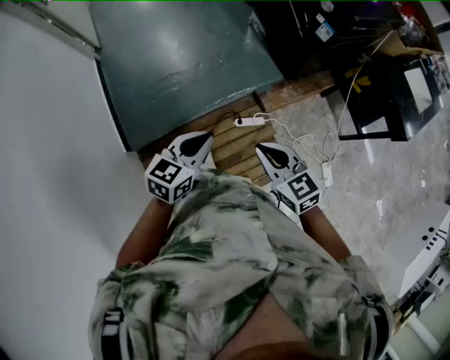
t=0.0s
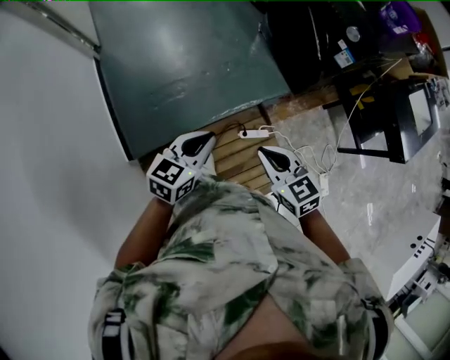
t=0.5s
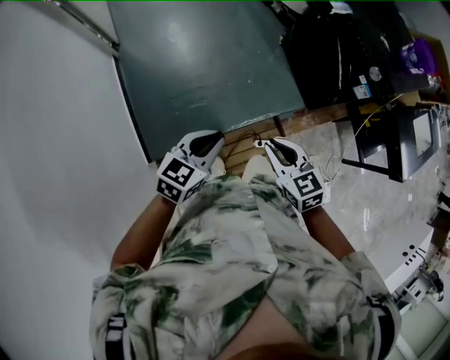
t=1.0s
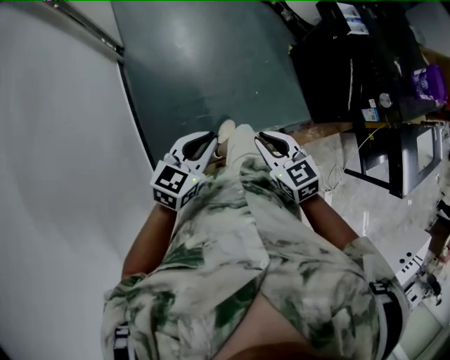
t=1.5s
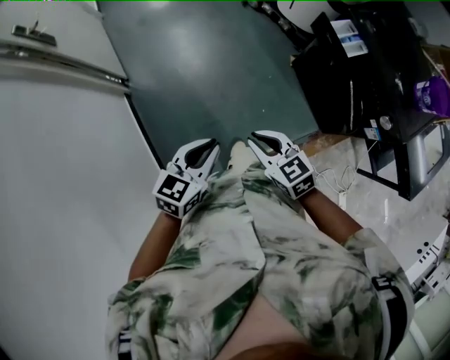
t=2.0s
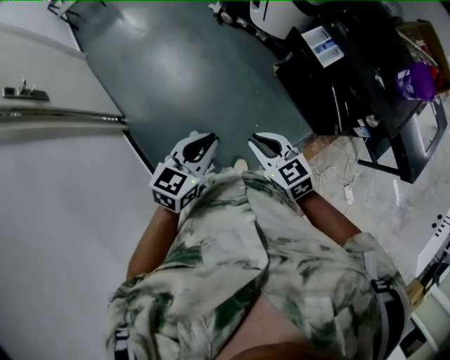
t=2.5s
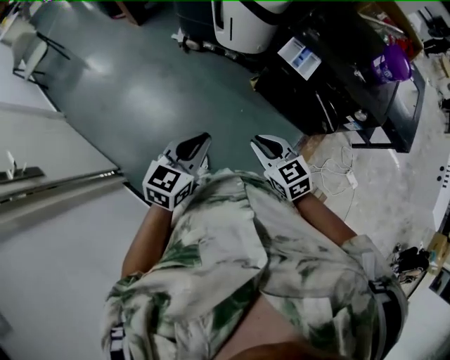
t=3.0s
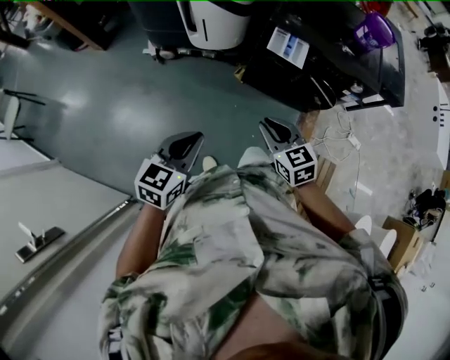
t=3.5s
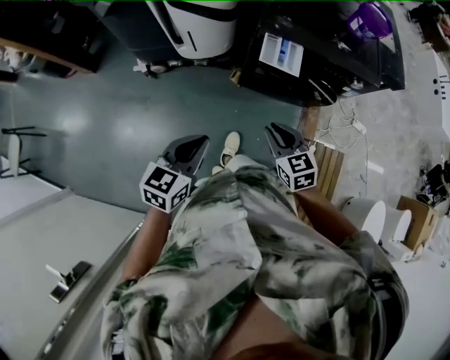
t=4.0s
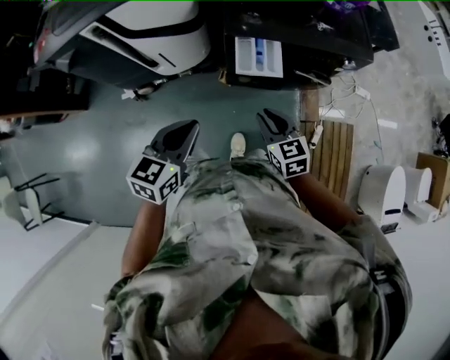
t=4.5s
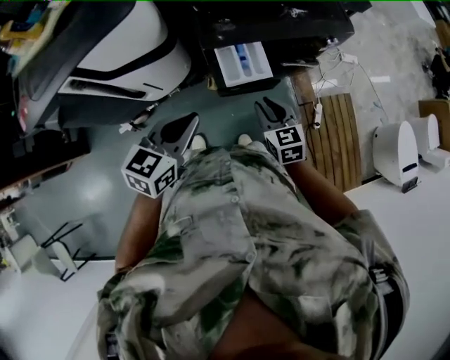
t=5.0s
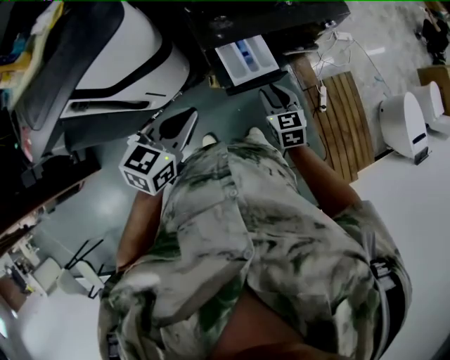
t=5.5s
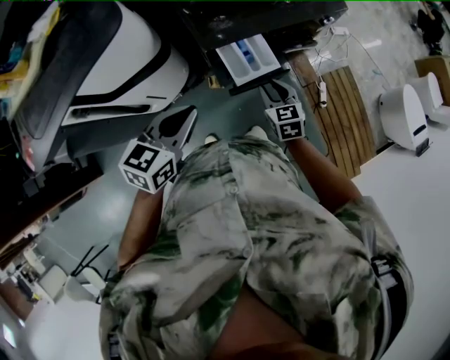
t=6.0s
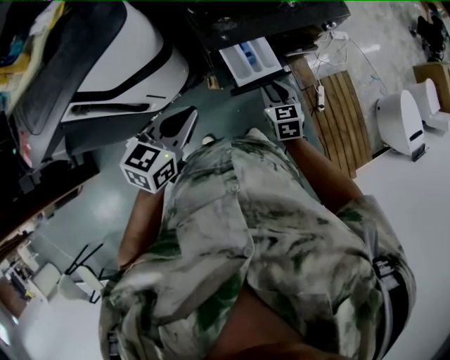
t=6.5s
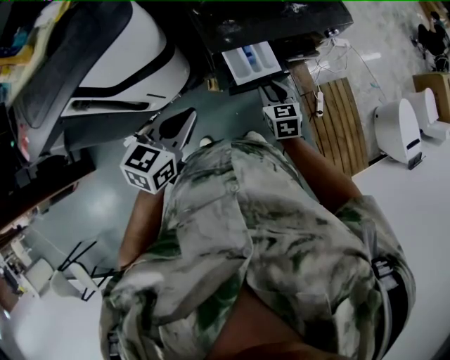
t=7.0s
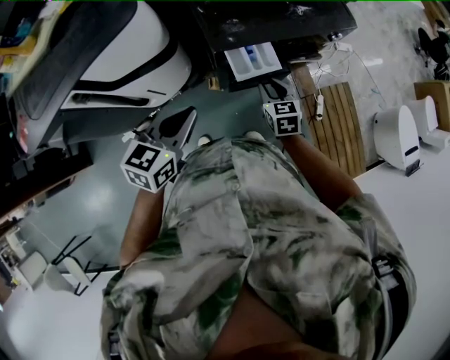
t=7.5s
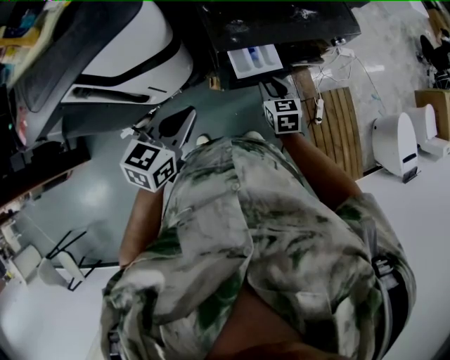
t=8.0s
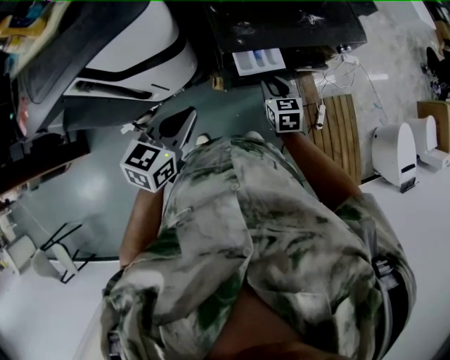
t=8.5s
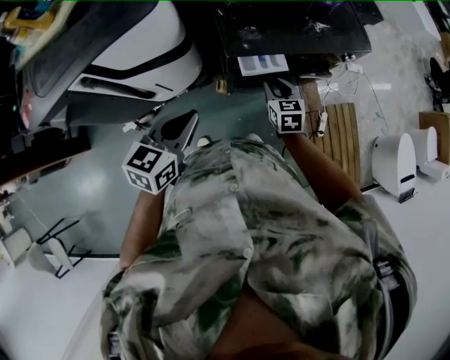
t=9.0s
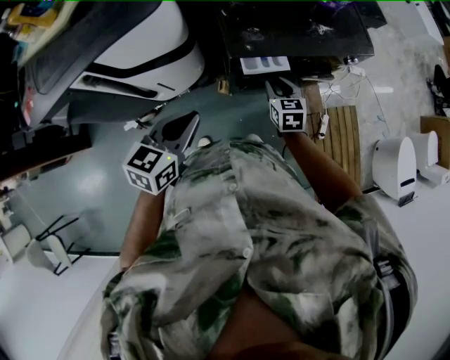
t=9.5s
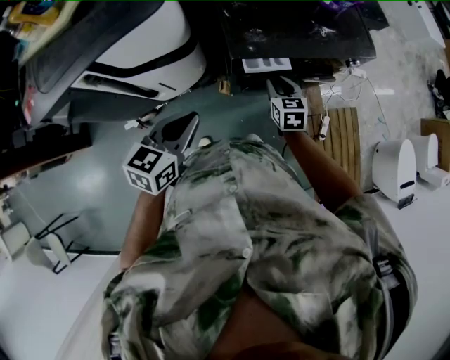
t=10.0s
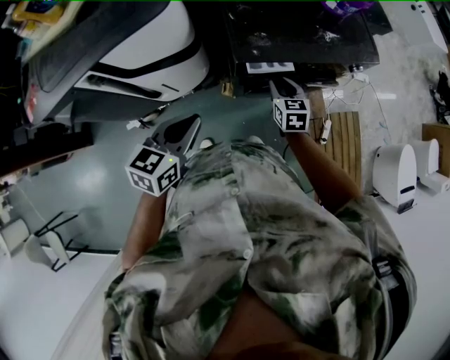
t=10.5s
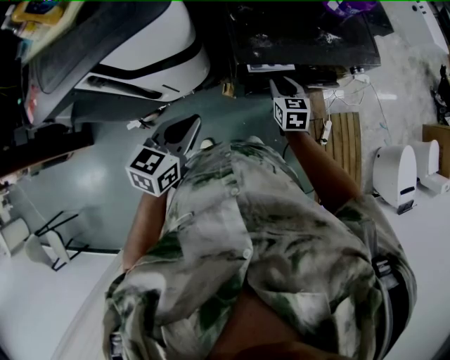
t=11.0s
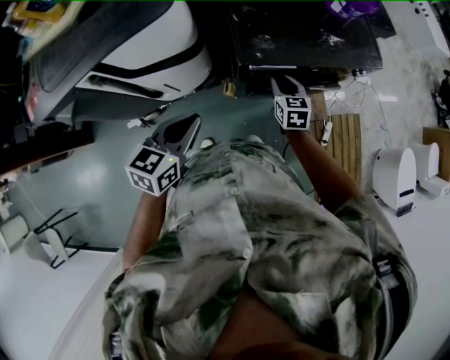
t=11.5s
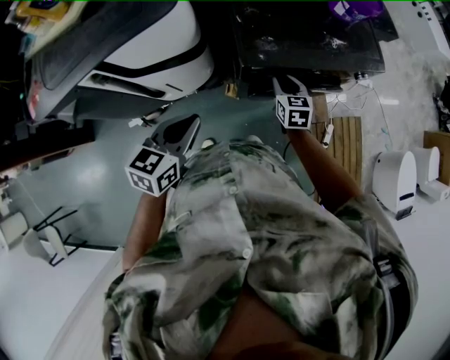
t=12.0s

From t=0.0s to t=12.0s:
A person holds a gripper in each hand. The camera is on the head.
From t=0.0s to t=2.0s: Both grippers are carried forward and to the left, roughly 60 cm.
From t=2.0s to t=4.0s: The left gripper shifts by some 50 cm, and changes its angle by approximately 50 degrees. The right gripper shifts by some 40 cm, and turns by some 70 degrees.
From t=4.0s to t=6.0s: The right gripper changes place by roughly 25 cm, and turns by about 40 degrees; the left gripper ends up about 30 cm from where it was, and swivels about 40 degrees.
From t=6.0s to t=8.0s: The grippers stay close to where they were, moving slightly.
From t=8.0s to t=10.0s: There are only small adjustments of the grippers.
From t=10.0s to t=12.0s: The grippers make only small movements.

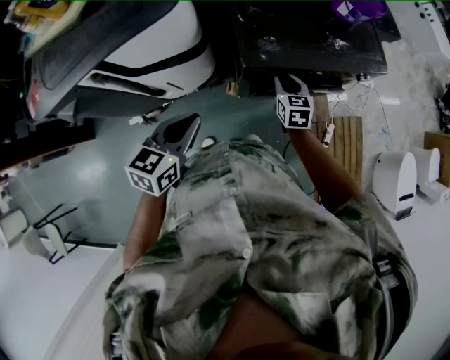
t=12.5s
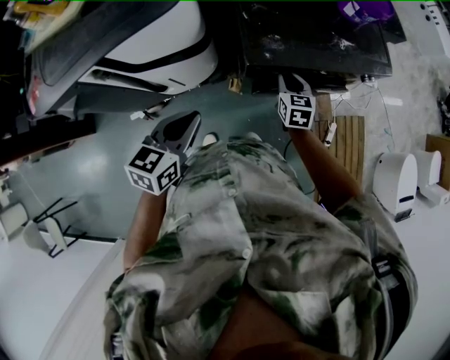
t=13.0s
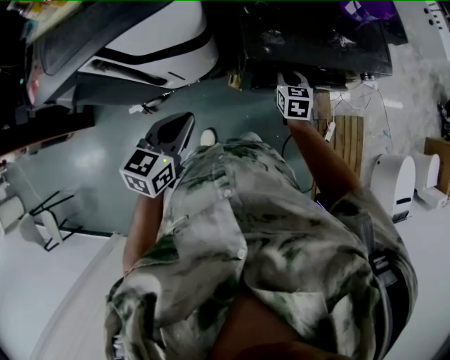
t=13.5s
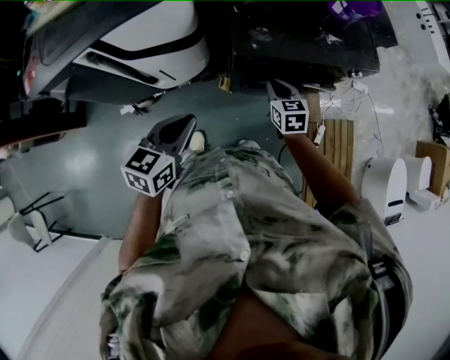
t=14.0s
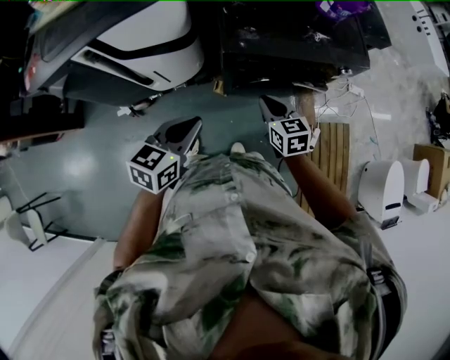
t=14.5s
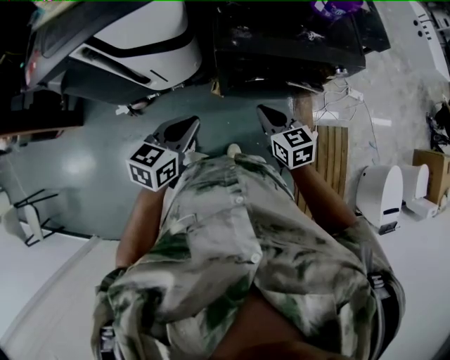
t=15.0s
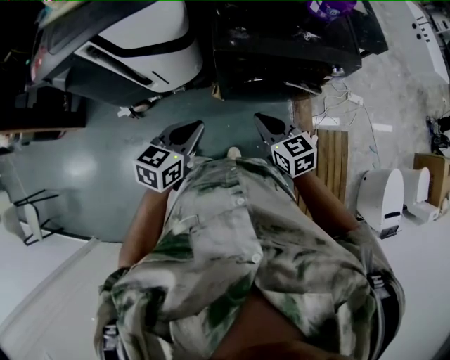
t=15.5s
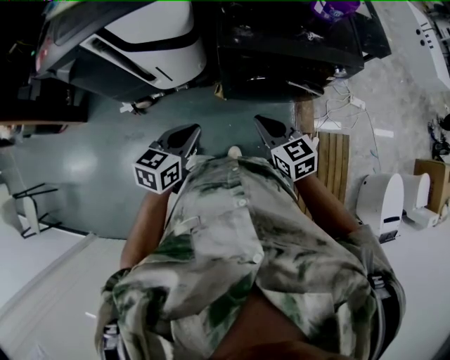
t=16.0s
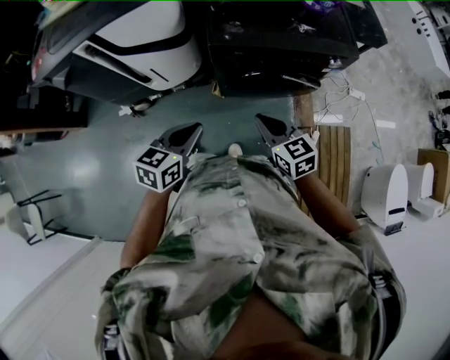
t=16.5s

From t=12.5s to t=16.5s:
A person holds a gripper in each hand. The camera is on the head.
From t=12.5s to t=14.5s: The left gripper moves to the right and backward, about 10 cm. The right gripper shifts about 15 cm backward and upward.
From t=14.5s to t=16.5s: The right gripper shifts approximately 10 cm backward; the left gripper travels backward and to the right by some 10 cm.

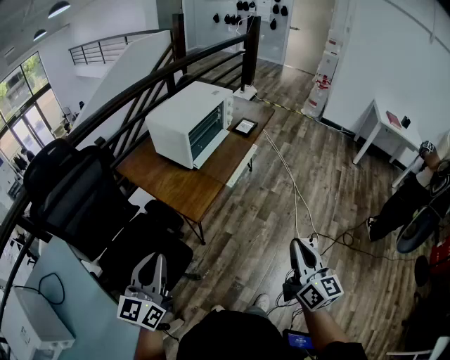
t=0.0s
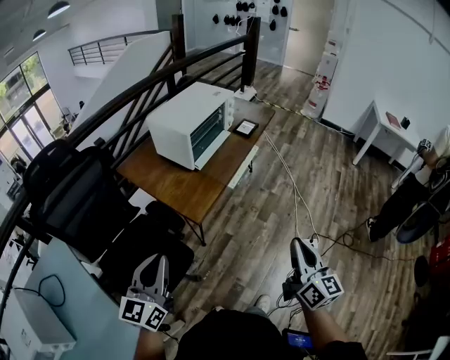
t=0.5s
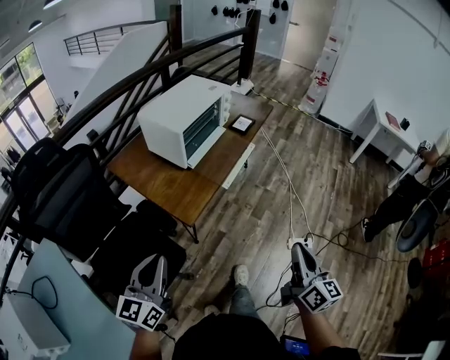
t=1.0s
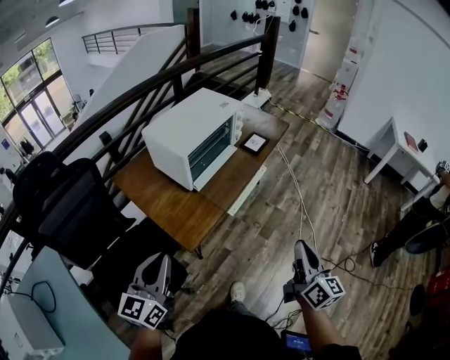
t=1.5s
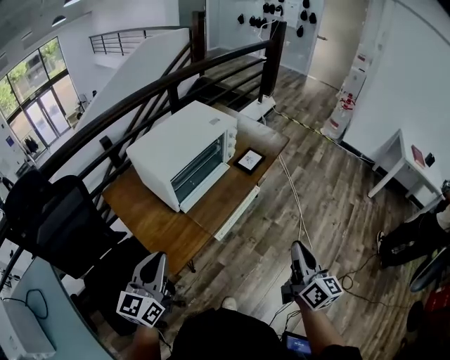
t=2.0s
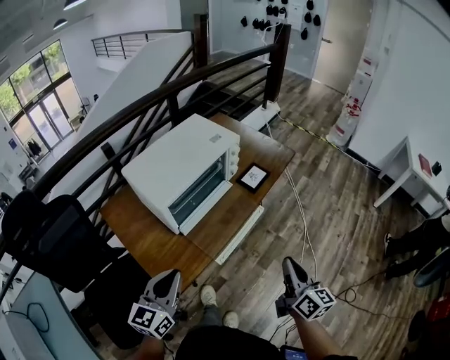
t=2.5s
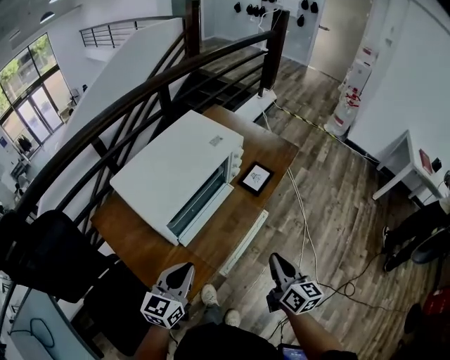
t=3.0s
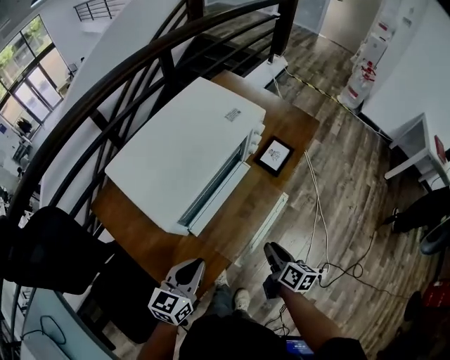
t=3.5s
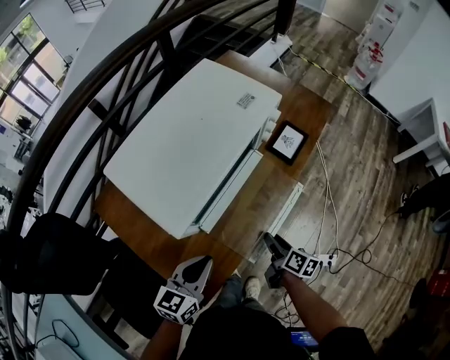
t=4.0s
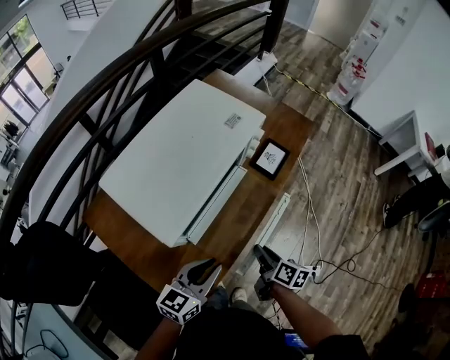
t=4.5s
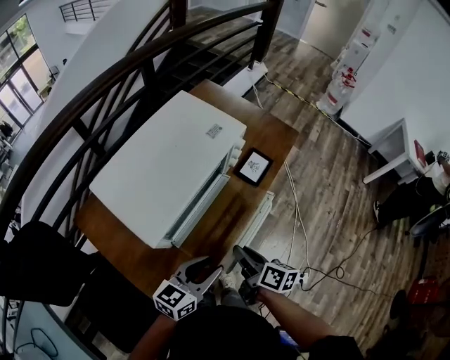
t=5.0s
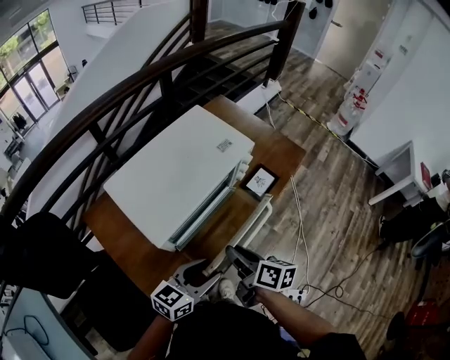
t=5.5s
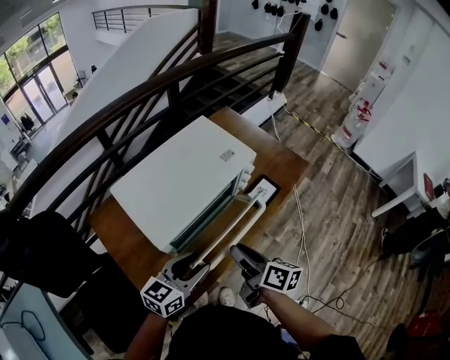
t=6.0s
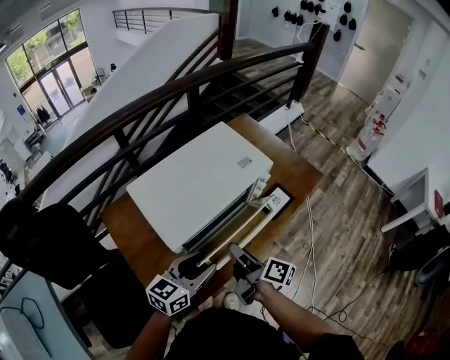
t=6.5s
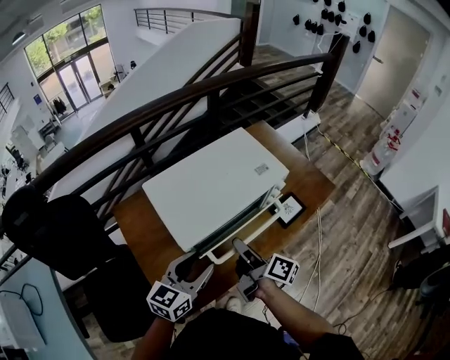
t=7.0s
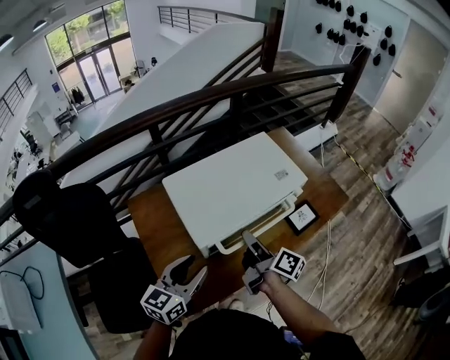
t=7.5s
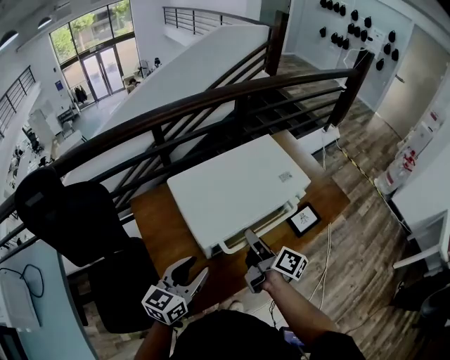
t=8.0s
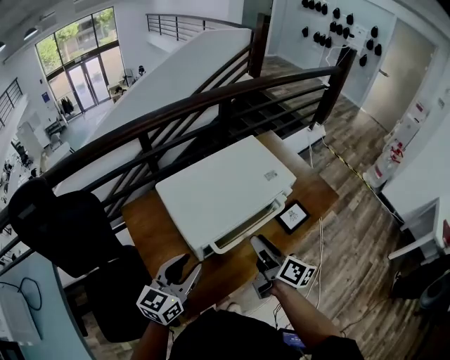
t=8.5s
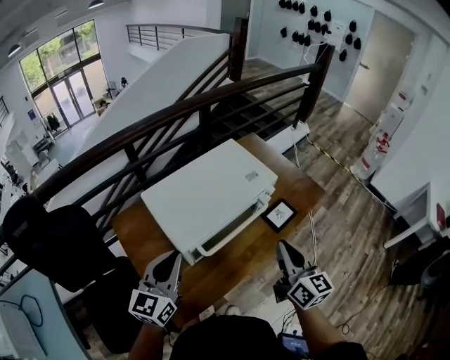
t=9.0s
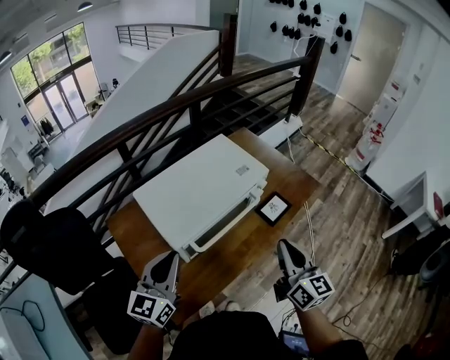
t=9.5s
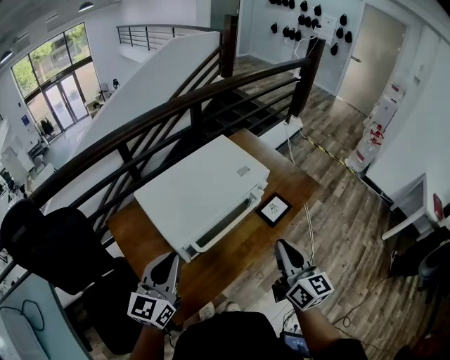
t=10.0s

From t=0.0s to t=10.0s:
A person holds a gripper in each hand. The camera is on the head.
From t=0.0s to t=2.0s: Both grippers move forward, some 25 cm.
From t=2.0s to t=4.0s: The left gripper shifts roughly 25 cm forward and downward, and changes its angle by about 30 degrees. Meanwhile the right gripper shifts about 40 cm downward, forward and to the left, angles its fingers downward, by approximately 30 degrees, and opens its fingers.
From t=4.0s to t=6.0s: The right gripper is displaced upward by some 20 cm, and changes its angle by about 20 degrees. The left gripper heads upward, forward and to the right, covering some 10 cm, and opens up.
From t=6.0s to t=8.0s: The right gripper travels to the left and forward by approximately 10 cm. Meanwhile the left gripper goes roughly 10 cm to the left, and changes its angle by some 20 degrees.
From t=8.0s to t=10.0s: The right gripper heads to the right, backward and upward, covering about 20 cm, rolls counterclockwise, seen from behind, by roughly 50 degrees, and closes. Meanwhile the left gripper moves upward, about 5 cm, and closes up.
